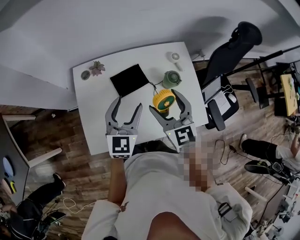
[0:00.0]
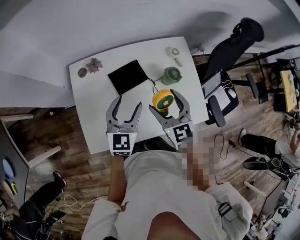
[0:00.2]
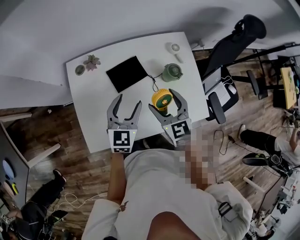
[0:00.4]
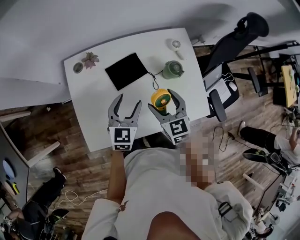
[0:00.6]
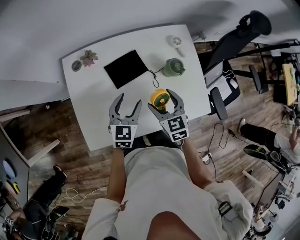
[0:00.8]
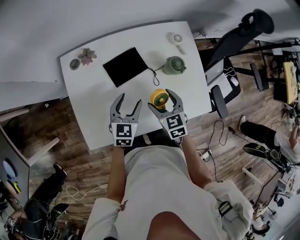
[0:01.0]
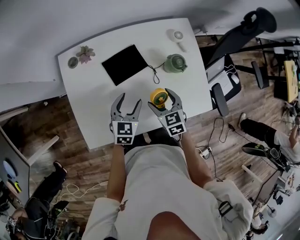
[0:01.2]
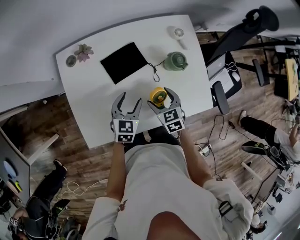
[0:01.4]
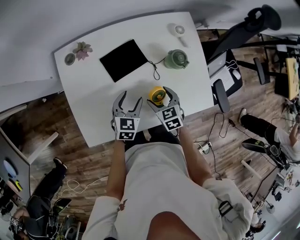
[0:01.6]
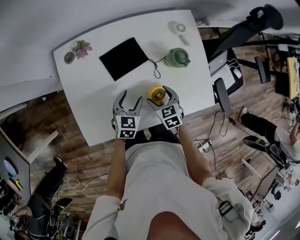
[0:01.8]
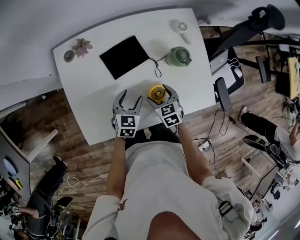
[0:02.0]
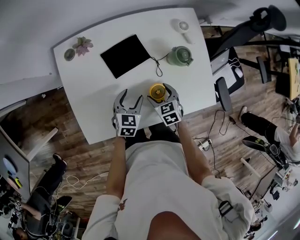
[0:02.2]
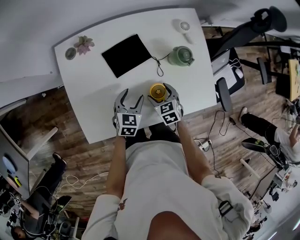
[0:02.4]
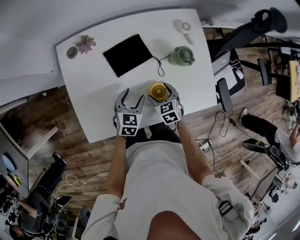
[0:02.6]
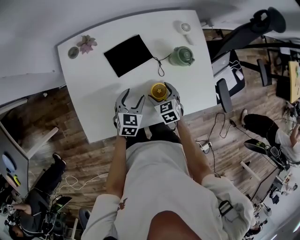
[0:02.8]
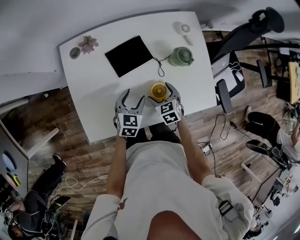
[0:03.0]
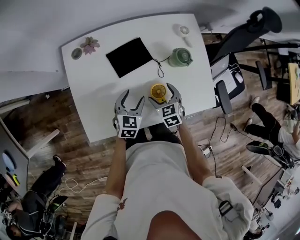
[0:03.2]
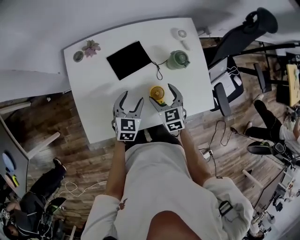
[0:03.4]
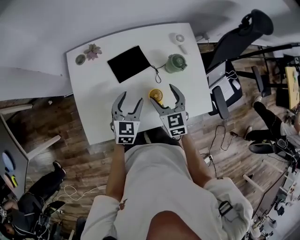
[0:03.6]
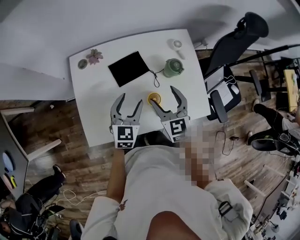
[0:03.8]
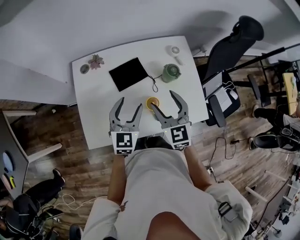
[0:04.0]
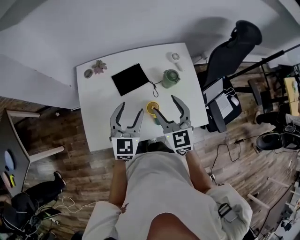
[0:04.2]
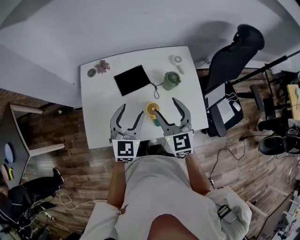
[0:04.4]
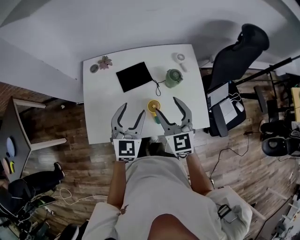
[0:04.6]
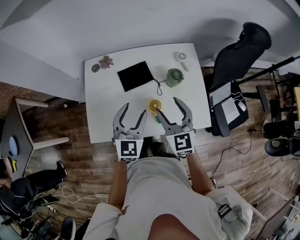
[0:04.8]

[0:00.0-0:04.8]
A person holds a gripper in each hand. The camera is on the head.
0:00.0 to 0:01.6: The grippers both shift downward by about 25 cm. The right gripper tips its fingers downward by roughly 30 degrees, while the left gripper swivels about 30 degrees.
0:01.6 to 0:03.2: The grippers move only a little.
0:03.2 to 0:04.8: Both grippers move upward, about 25 cm. The left gripper swivels approximately 30 degrees. Meanwhile the right gripper points its fingers some 30 degrees further upward.

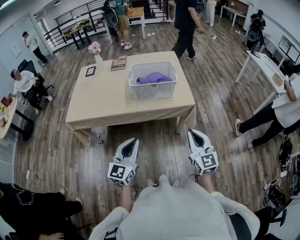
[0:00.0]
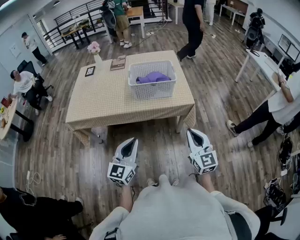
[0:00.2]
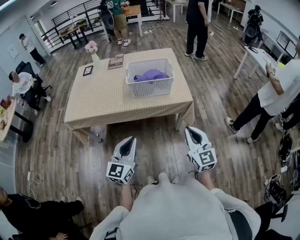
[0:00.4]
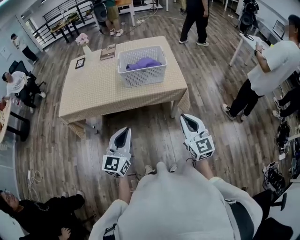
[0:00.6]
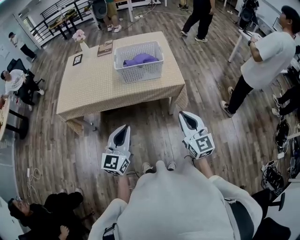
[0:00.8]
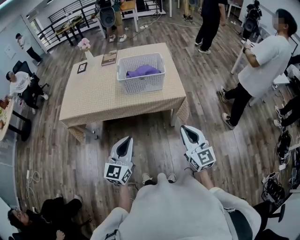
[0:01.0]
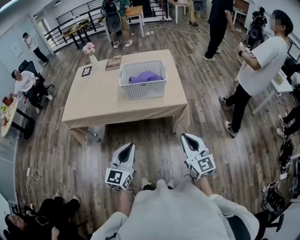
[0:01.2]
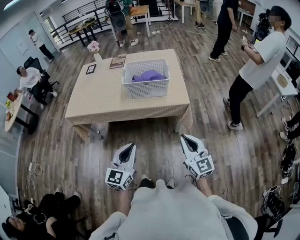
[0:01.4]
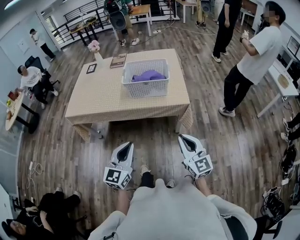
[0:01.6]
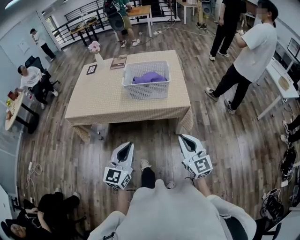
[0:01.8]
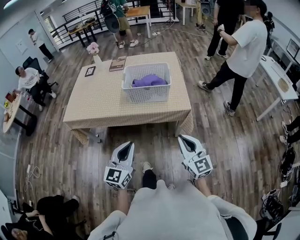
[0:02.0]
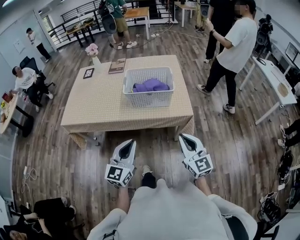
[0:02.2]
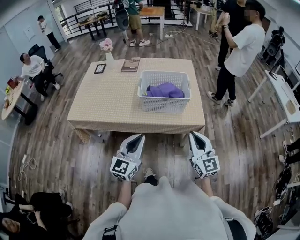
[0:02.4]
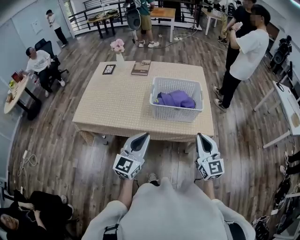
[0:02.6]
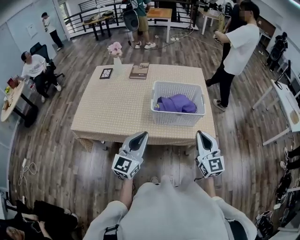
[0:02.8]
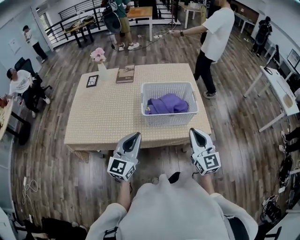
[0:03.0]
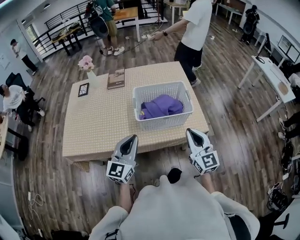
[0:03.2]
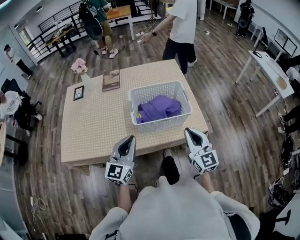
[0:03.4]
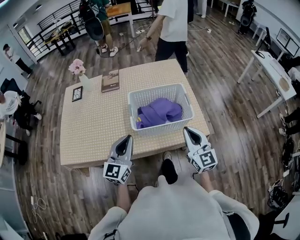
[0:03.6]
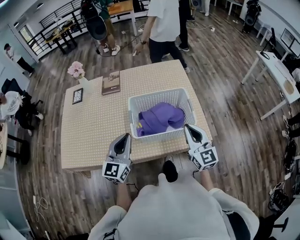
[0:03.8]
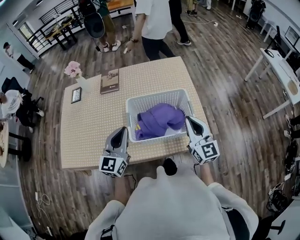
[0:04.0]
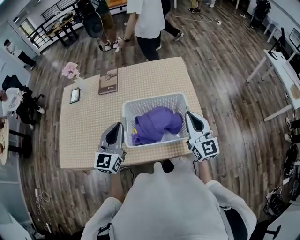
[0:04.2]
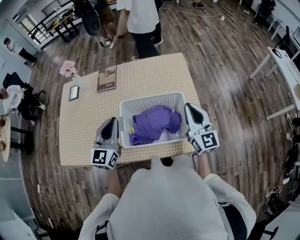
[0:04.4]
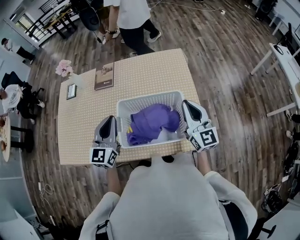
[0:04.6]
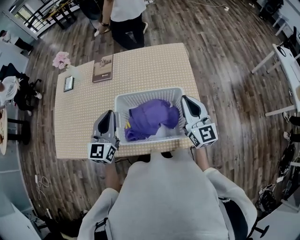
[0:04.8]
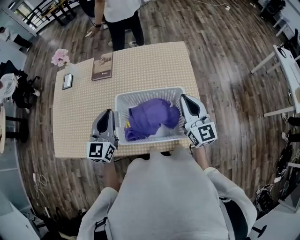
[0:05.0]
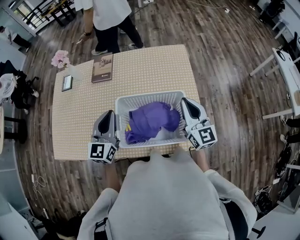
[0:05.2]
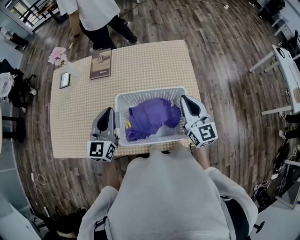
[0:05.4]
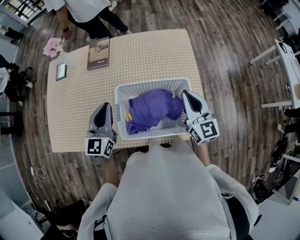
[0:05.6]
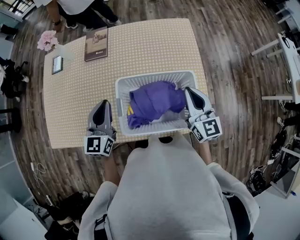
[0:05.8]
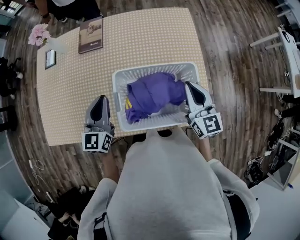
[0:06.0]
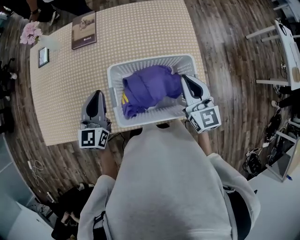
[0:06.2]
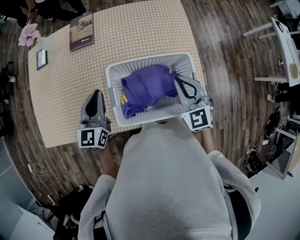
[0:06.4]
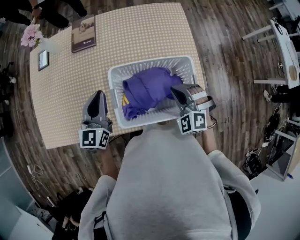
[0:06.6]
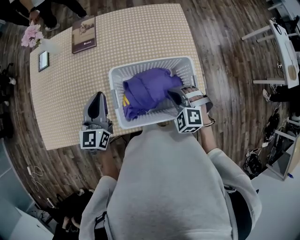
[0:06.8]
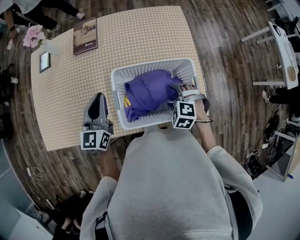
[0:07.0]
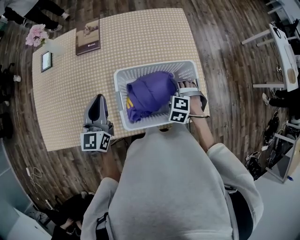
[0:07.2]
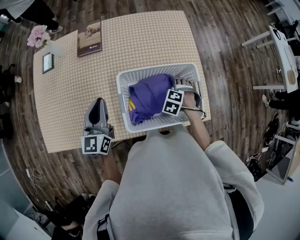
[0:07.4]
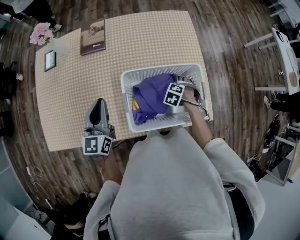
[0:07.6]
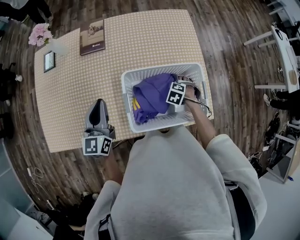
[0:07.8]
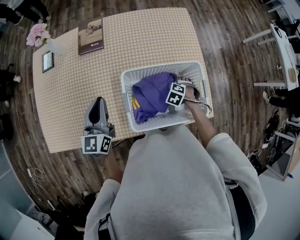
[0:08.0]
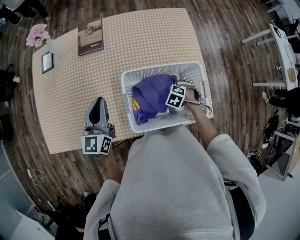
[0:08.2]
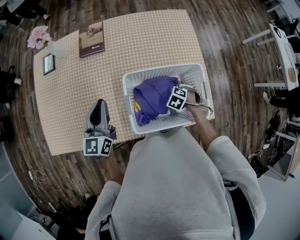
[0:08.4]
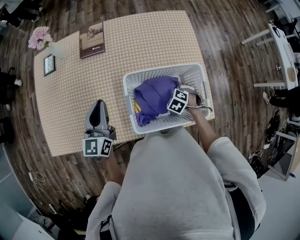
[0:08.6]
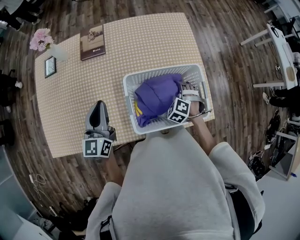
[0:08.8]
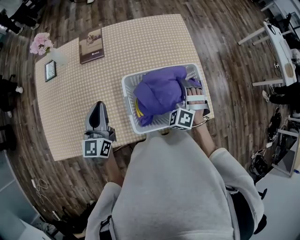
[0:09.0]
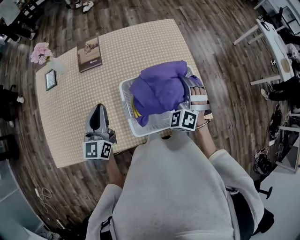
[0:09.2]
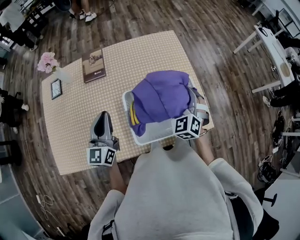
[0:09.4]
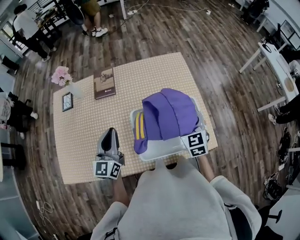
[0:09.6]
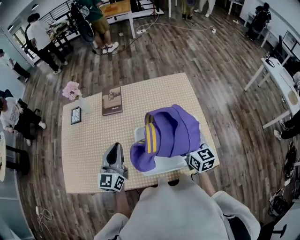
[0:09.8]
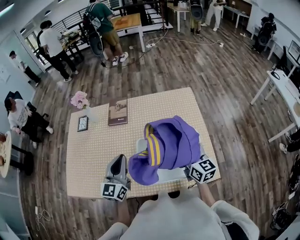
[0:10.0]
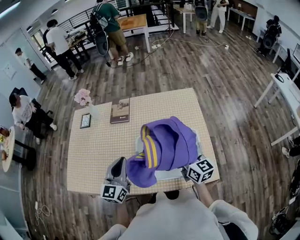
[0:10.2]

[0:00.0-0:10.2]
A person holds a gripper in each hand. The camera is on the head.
0:00.0 to 0:01.4: The two grippers go about 5 cm to the right.
0:01.4 to 0:03.0: The two grippers go roughly 35 cm forward and to the left.
0:03.0 to 0:04.4: The grippers both shift forward by approximately 30 cm.
0:04.4 to 0:05.8: The right gripper moves downward, about 5 cm. Meanwhile the left gripper heads downward and to the left, covering some 10 cm.
0:05.8 to 0:07.2: The right gripper heads downward, covering approximately 20 cm, points its fingers about 60 degrees further downward, and opens its fingers.
0:07.2 to 0:08.8: The right gripper travels downward and back again, about 10 cm each way, and closes up.
0:08.8 to 0:10.2: The left gripper shifts some 10 cm to the right, upward and backward; the right gripper is displaced upward by some 25 cm, and tips its fingers upward by some 50 degrees.

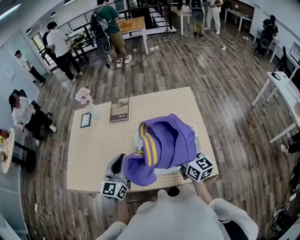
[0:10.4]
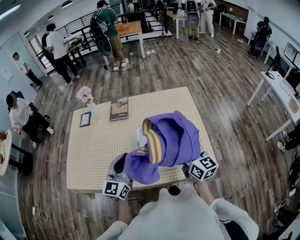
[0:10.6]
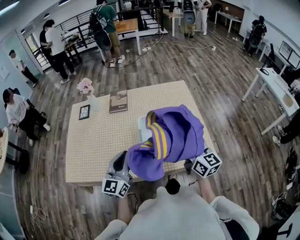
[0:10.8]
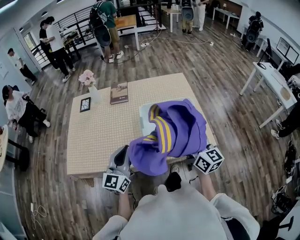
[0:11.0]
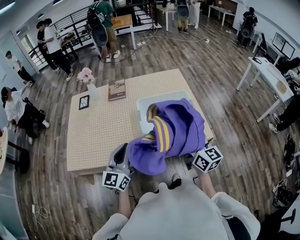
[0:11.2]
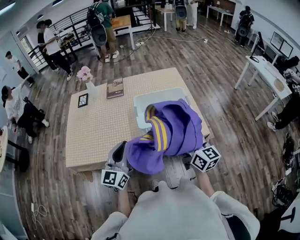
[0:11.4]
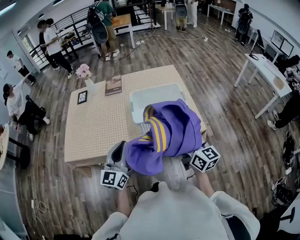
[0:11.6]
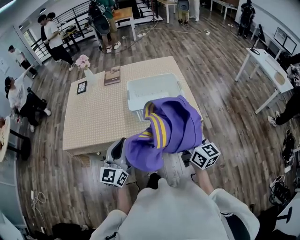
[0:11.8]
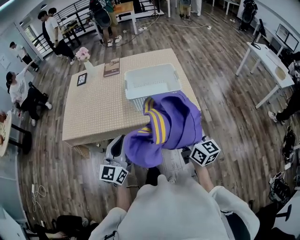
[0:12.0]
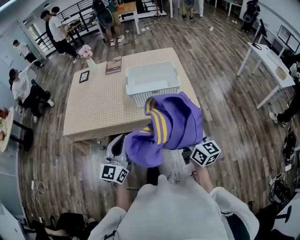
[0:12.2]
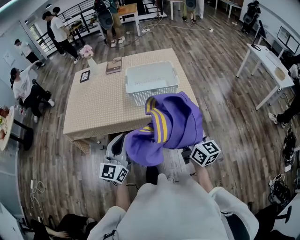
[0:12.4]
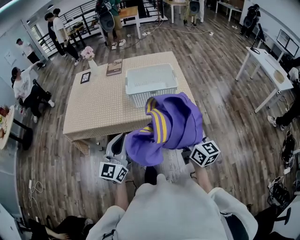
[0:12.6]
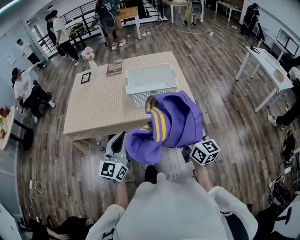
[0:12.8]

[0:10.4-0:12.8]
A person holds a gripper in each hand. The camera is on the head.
0:10.4 to 0:11.6: Both grippers travel together backward, roughly 30 cm.
0:11.6 to 0:12.8: The two grippers go roughly 15 cm backward and to the right.

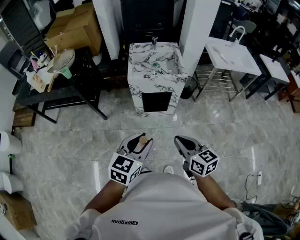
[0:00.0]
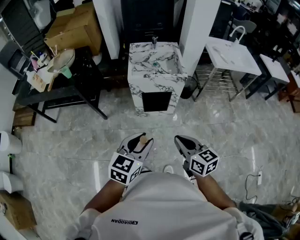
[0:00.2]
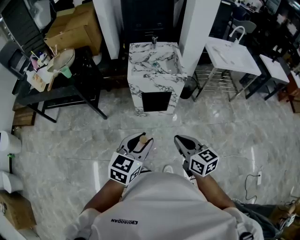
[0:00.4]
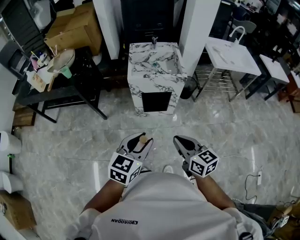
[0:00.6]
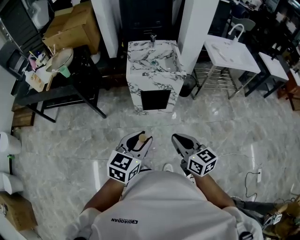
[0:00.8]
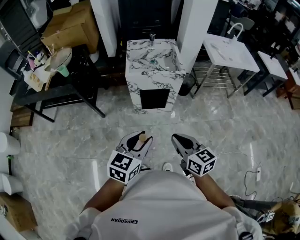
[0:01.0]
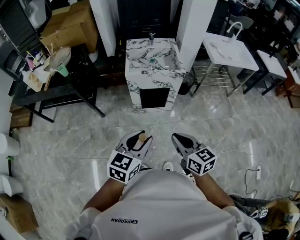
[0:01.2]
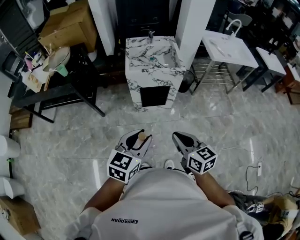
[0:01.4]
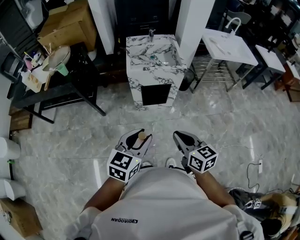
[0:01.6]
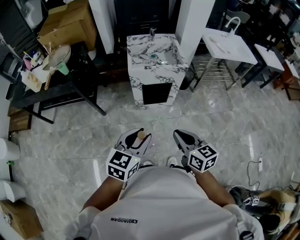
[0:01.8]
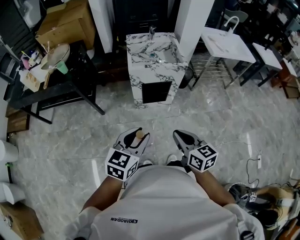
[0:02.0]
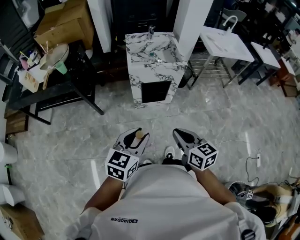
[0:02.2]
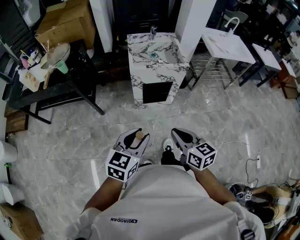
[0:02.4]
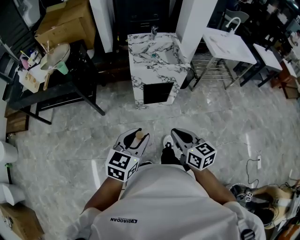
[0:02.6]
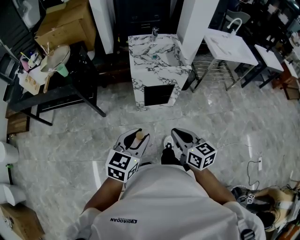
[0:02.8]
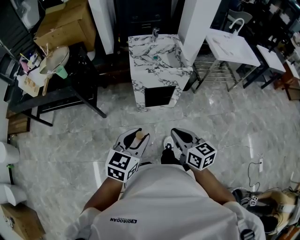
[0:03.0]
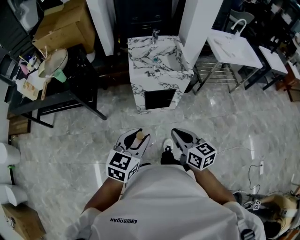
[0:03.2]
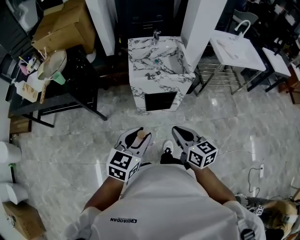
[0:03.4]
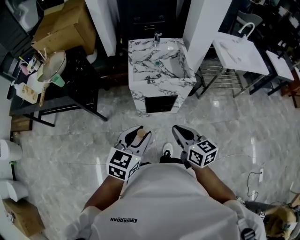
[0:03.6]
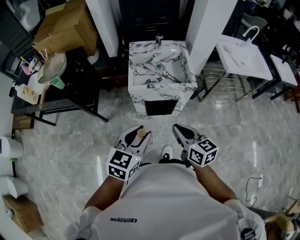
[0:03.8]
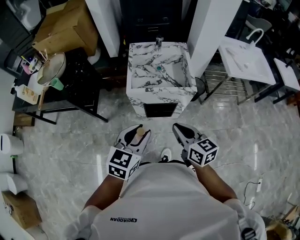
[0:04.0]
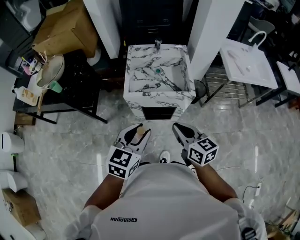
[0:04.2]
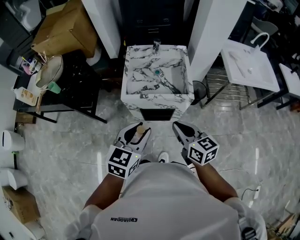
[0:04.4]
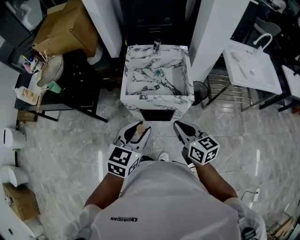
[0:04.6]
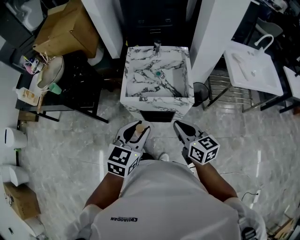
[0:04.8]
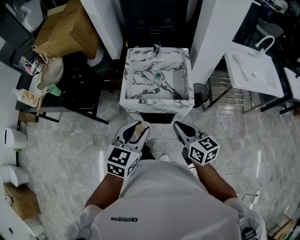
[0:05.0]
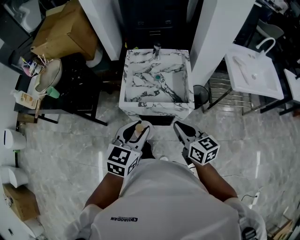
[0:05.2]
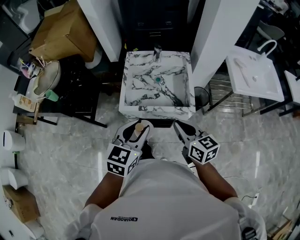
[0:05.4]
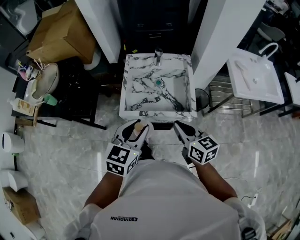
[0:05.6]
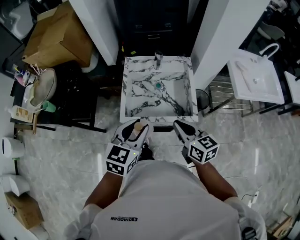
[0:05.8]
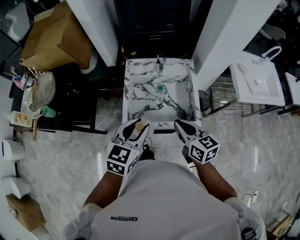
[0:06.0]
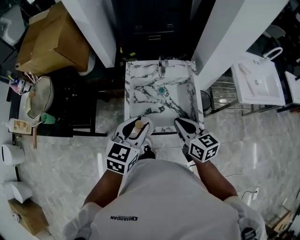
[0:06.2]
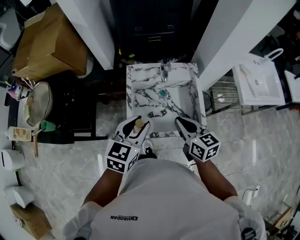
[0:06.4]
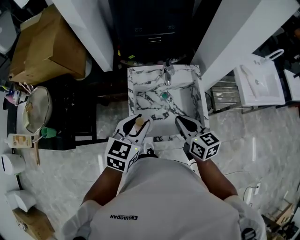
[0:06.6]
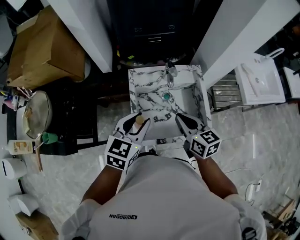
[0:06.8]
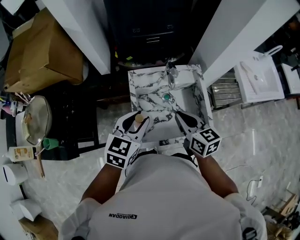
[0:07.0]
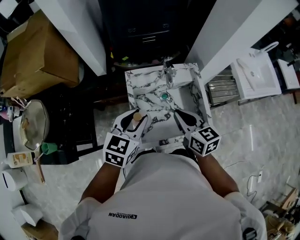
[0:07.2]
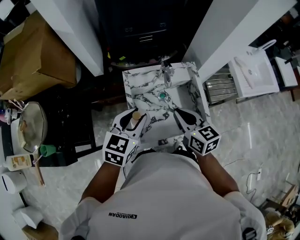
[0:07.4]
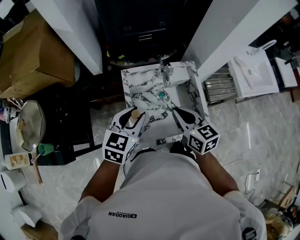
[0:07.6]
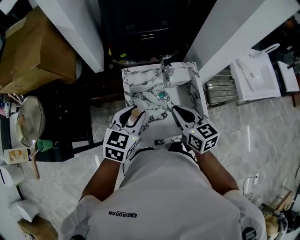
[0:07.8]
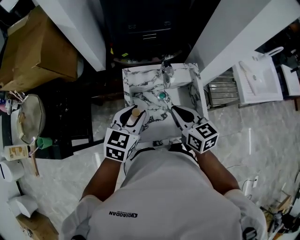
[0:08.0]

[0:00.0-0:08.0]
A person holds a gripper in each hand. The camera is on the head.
0:00.0 to 0:01.6: The grippers stay close to where they were, moving slightly.
0:01.6 to 0:03.2: The two grippers go about 10 cm forward and to the left.
0:03.2 to 0:04.8: Both grippers travel together forward and to the right, some 30 cm.
0:04.8 to 0:06.4: The grippers both shift forward by about 25 cm.
0:06.4 to 0:08.0: The grippers both shift forward by roughly 10 cm.
